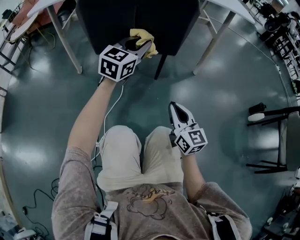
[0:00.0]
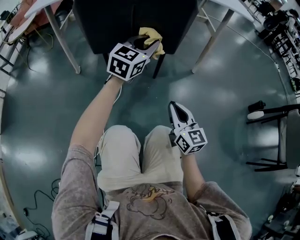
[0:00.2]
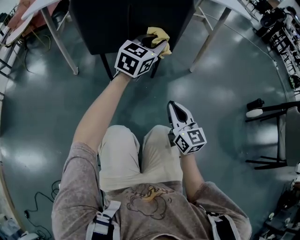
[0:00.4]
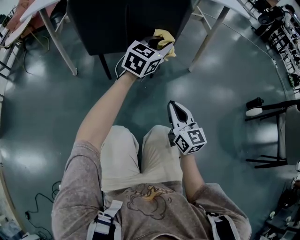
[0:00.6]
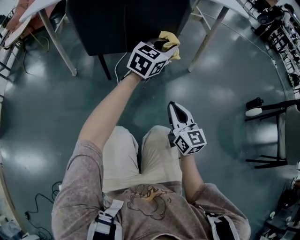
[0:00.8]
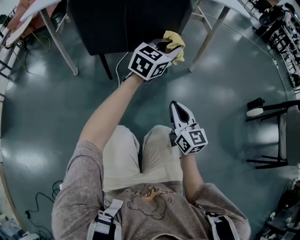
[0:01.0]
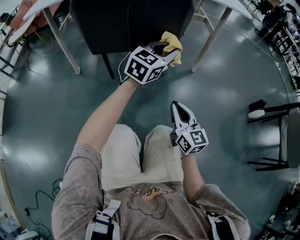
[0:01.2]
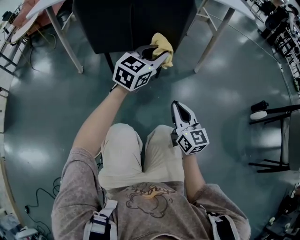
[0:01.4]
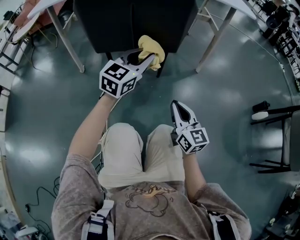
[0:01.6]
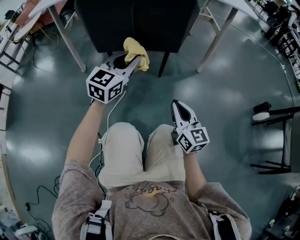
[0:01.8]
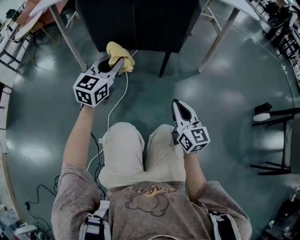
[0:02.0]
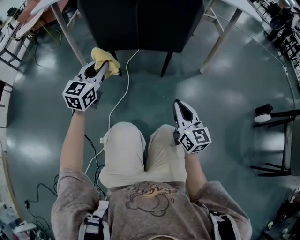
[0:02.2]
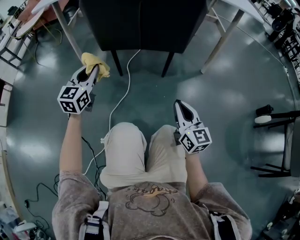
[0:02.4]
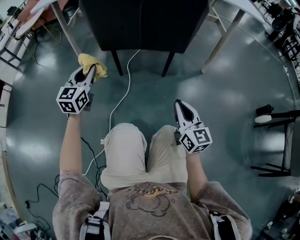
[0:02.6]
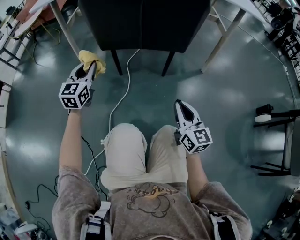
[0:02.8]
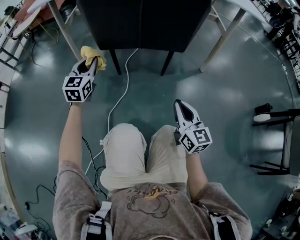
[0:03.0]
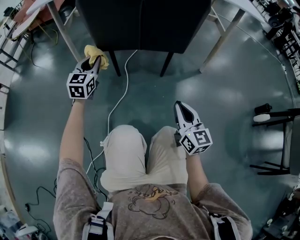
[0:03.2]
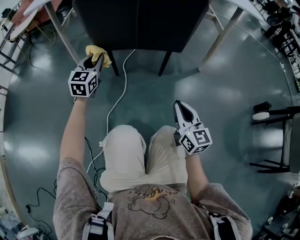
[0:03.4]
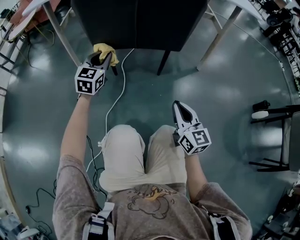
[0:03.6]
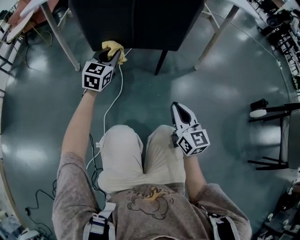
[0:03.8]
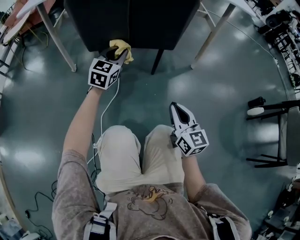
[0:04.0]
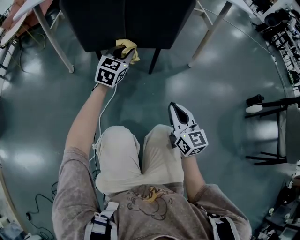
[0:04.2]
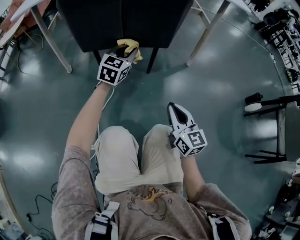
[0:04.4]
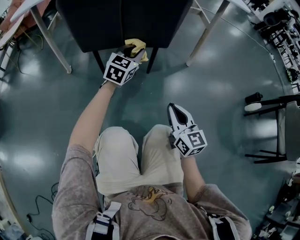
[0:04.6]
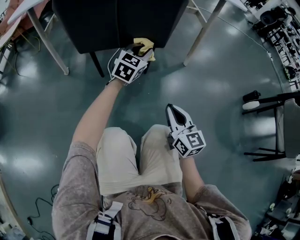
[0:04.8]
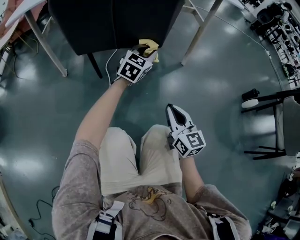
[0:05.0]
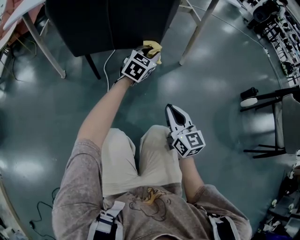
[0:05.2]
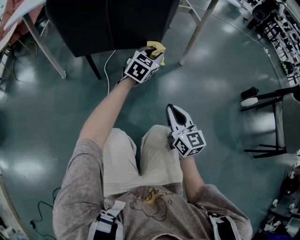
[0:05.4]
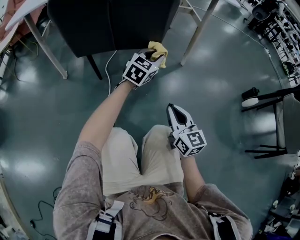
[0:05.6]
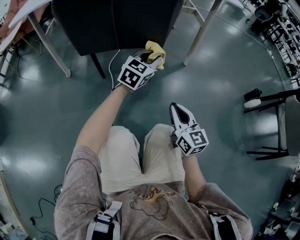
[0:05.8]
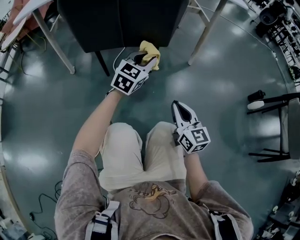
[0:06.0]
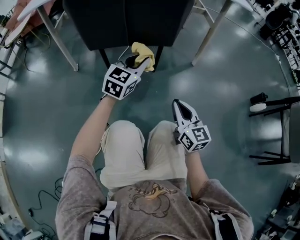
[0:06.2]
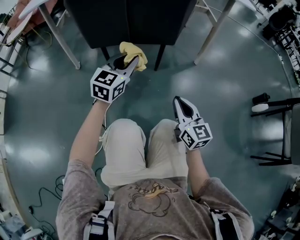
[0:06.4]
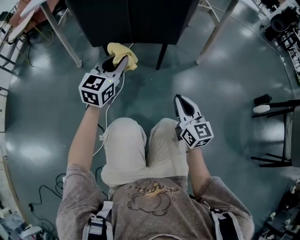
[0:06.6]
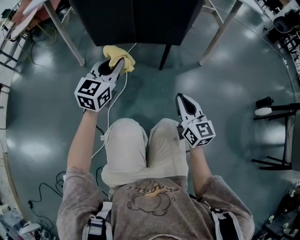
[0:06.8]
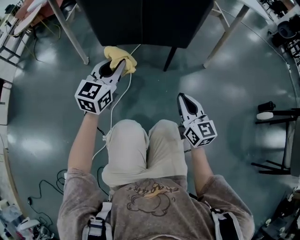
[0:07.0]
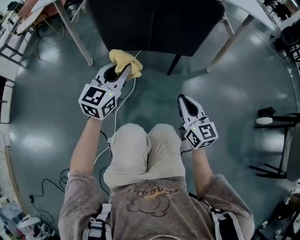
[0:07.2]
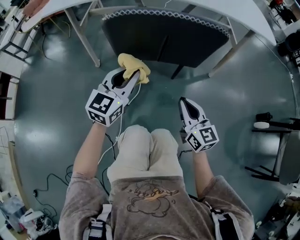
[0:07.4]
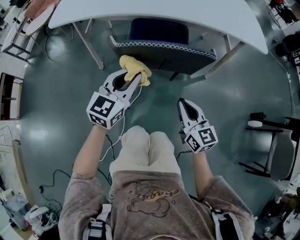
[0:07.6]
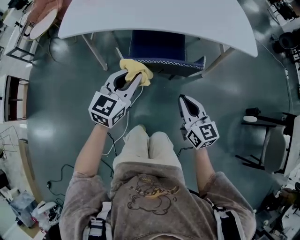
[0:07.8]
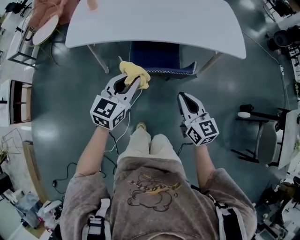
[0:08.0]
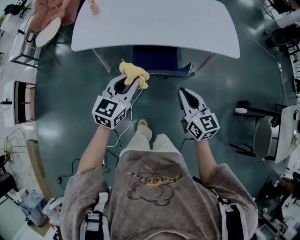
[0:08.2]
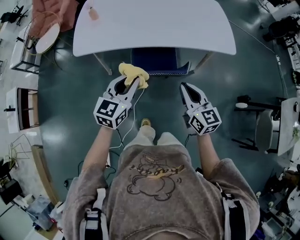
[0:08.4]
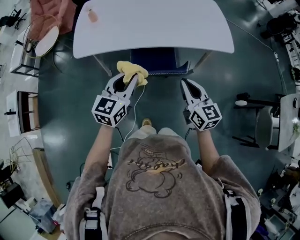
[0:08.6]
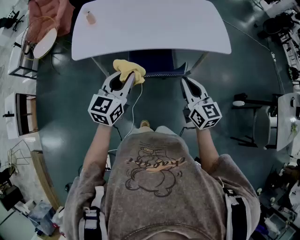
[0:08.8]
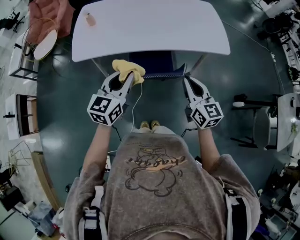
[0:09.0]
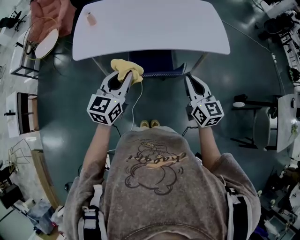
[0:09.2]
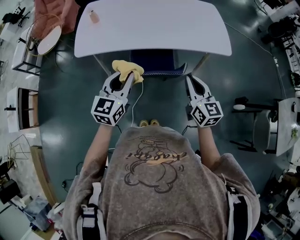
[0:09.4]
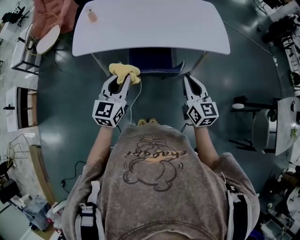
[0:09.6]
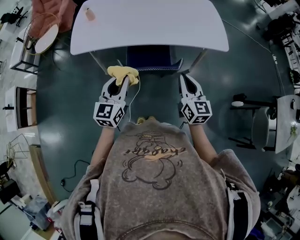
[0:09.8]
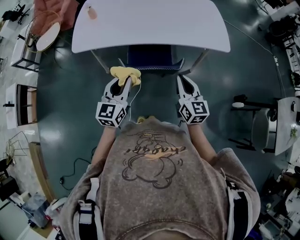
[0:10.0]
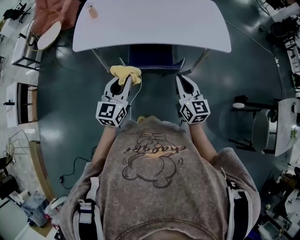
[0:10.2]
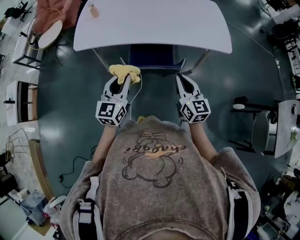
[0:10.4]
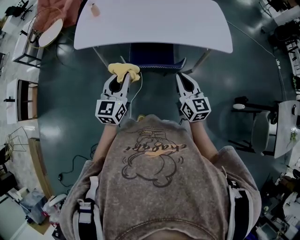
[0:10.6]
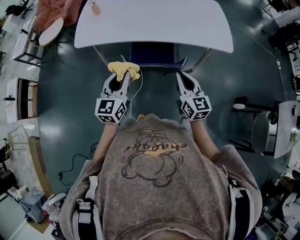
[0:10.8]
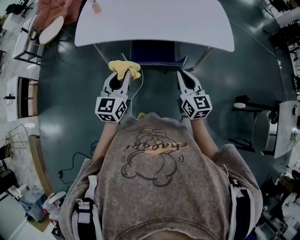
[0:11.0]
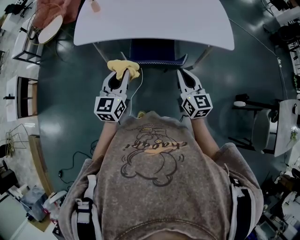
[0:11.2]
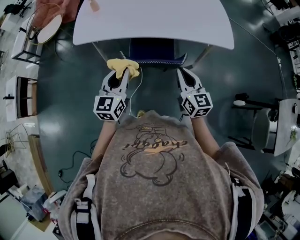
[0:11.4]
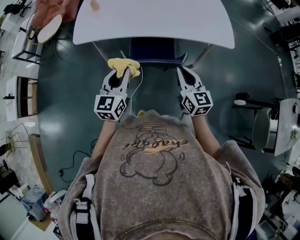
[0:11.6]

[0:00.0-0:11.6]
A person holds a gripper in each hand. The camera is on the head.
0:00.0 to 0:01.4: The left gripper moves to the right, some 10 cm.
0:01.4 to 0:02.8: The left gripper travels to the left by roughly 30 cm, and rotates approximately 30 degrees.
0:02.8 to 0:04.4: The left gripper shifts roughly 25 cm to the right, and rotates roughly 20 degrees.
0:04.4 to 0:05.8: The left gripper is displaced to the right by some 10 cm.
0:05.8 to 0:07.2: The left gripper travels to the left by approximately 25 cm, and changes its angle by some 20 degrees; the right gripper is displaced to the left and forward by approximately 10 cm.
0:07.2 to 0:08.8: The grippers both shift upward by some 50 cm.
0:08.8 to 0:10.2: The left gripper ends up some 5 cm from where it was.
0:10.2 to 0:11.6: There are only small adjustments of the grippers.

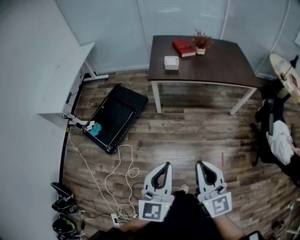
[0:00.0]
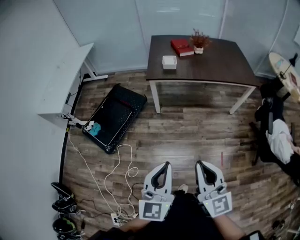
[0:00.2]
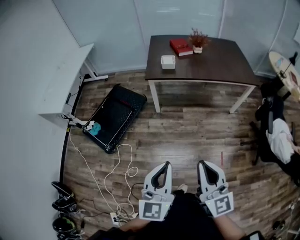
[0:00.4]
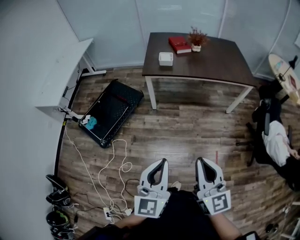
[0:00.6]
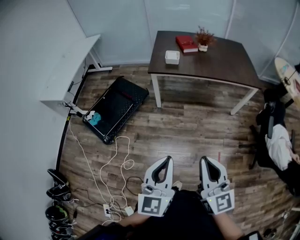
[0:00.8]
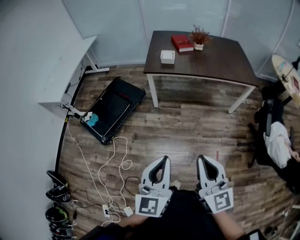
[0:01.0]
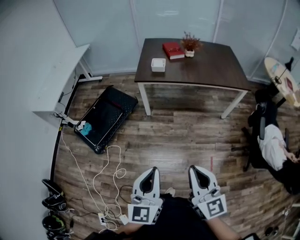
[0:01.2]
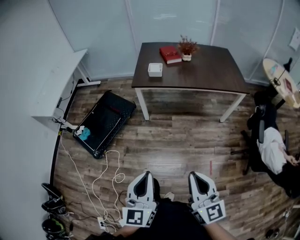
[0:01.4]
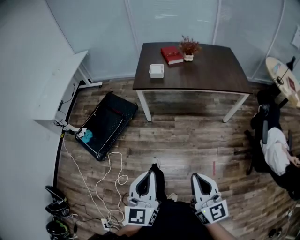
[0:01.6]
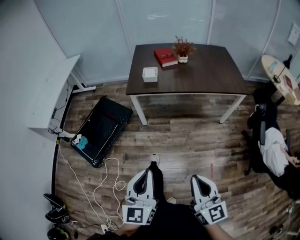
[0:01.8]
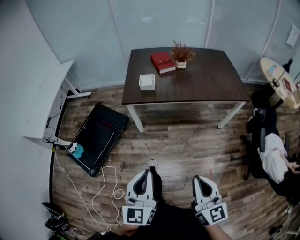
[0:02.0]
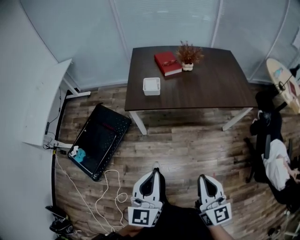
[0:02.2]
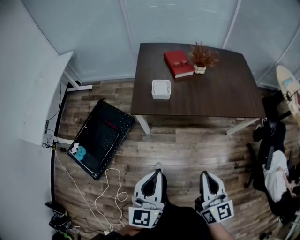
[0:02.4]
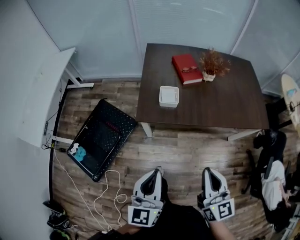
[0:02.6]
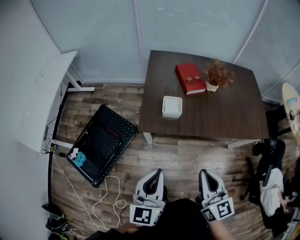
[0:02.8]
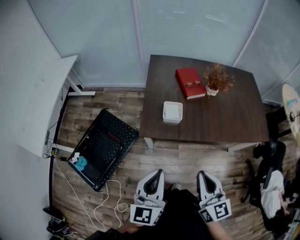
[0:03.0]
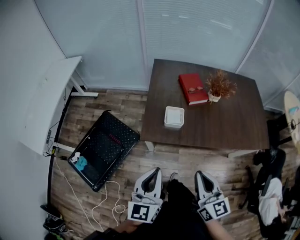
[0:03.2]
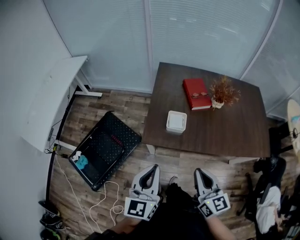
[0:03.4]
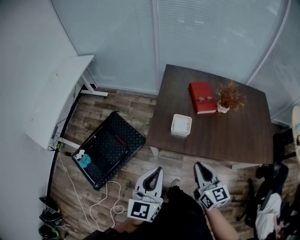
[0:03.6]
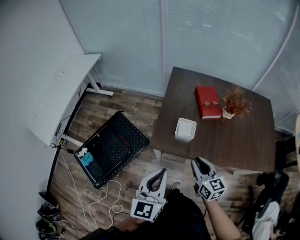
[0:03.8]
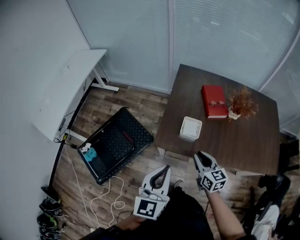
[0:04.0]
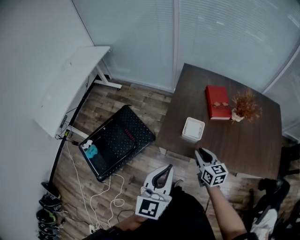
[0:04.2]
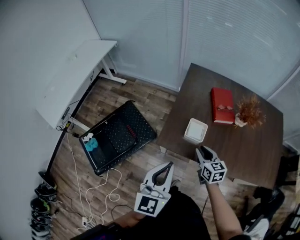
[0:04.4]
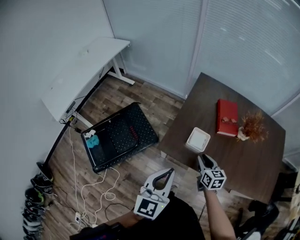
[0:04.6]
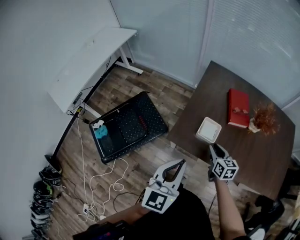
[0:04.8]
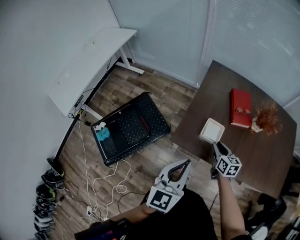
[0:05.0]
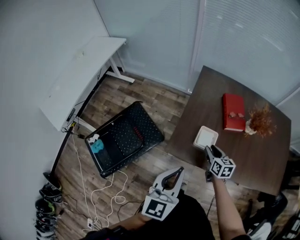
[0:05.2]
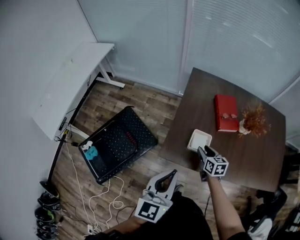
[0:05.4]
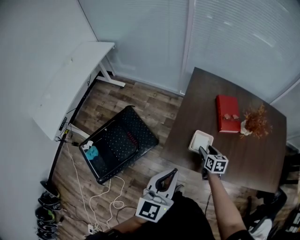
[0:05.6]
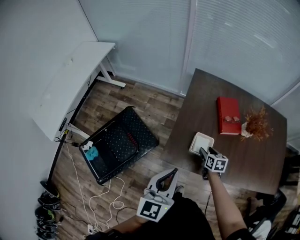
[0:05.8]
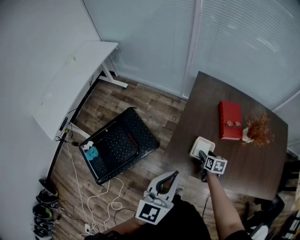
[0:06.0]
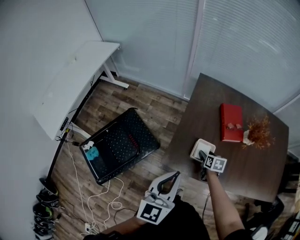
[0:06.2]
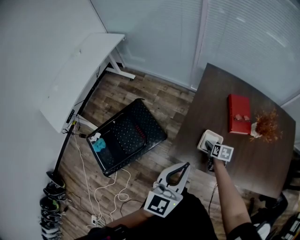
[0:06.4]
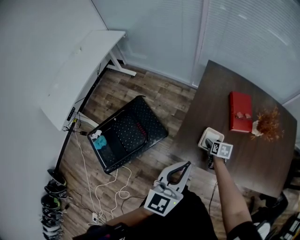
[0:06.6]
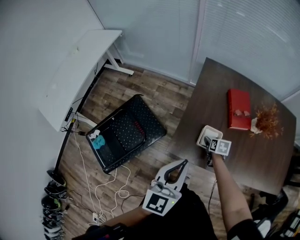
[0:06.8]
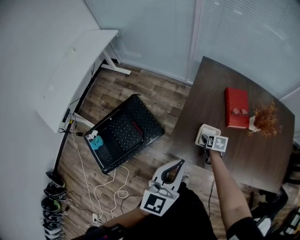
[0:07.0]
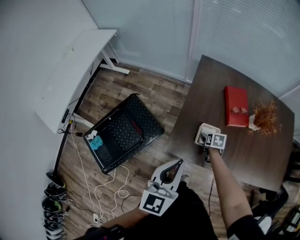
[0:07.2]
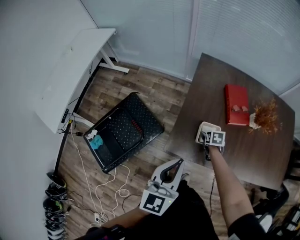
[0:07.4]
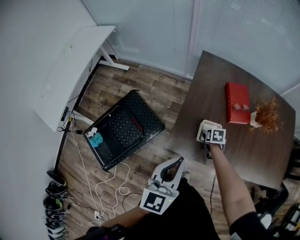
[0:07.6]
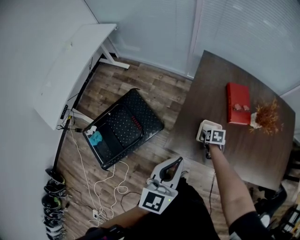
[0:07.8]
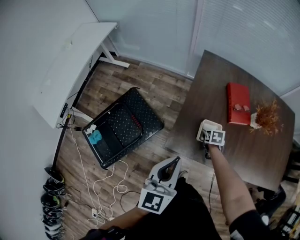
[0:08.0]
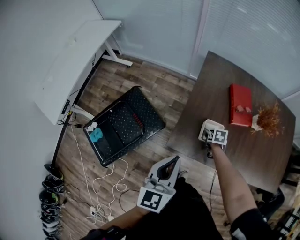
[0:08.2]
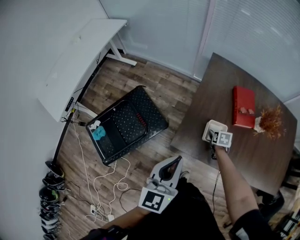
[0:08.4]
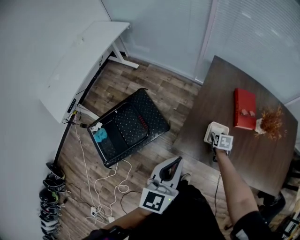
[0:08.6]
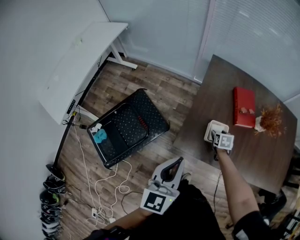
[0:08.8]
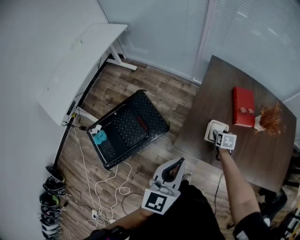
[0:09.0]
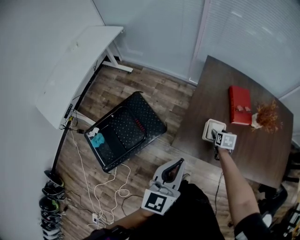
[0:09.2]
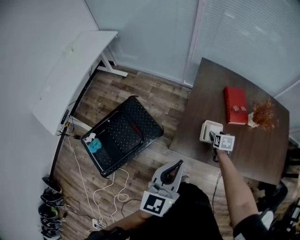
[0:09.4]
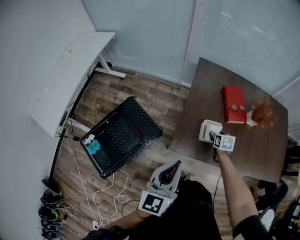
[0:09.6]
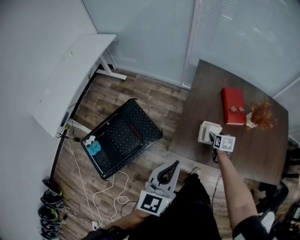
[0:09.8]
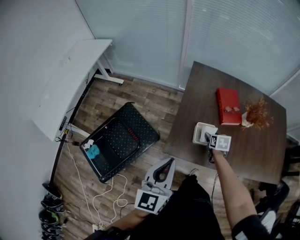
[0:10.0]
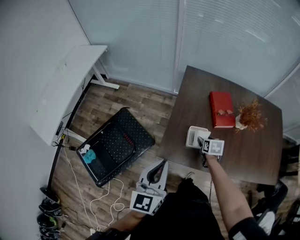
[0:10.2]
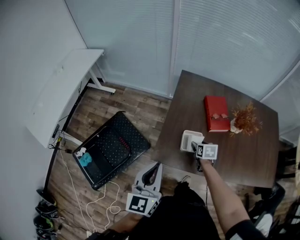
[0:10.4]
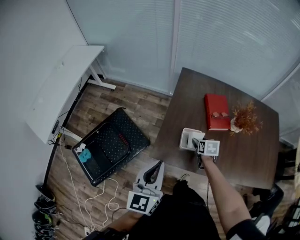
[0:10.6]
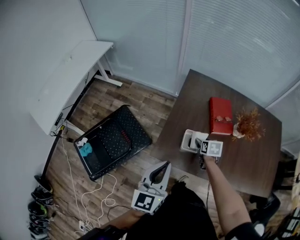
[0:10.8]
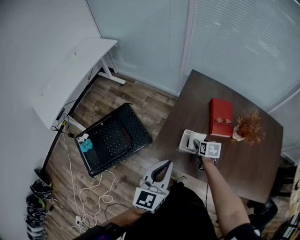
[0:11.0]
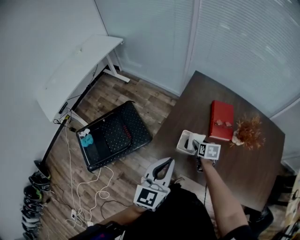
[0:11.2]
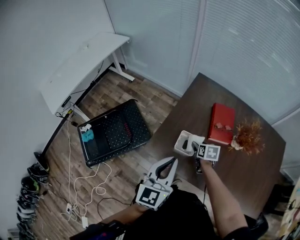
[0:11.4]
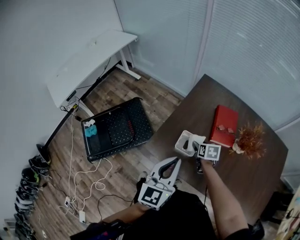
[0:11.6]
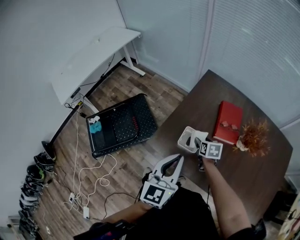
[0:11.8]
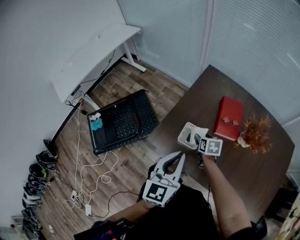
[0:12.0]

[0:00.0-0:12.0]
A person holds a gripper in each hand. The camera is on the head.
0:00.0 to 0:01.6: The left gripper heads to the right, covering some 5 cm. Meanwhile the right gripper shifts some 10 cm to the right.
0:01.6 to 0:03.0: The two grippers travel together, forward, approximately 50 cm.
0:03.0 to 0:04.4: The right gripper heads forward and downward, covering roughly 30 cm, and changes its angle by roughly 30 degrees. Meanwhile the left gripper moves forward, approximately 10 cm.
0:04.4 to 0:06.0: The right gripper shifts approximately 15 cm downward and forward, swivels approximately 30 degrees, and opens its fingers; the left gripper heads forward, covering some 10 cm.
0:06.0 to 0:07.6: The right gripper ends up about 5 cm from where it was.
0:07.6 to 0:09.0: The left gripper moves some 5 cm.
0:09.0 to 0:10.4: The right gripper changes place by roughly 5 cm.
0:10.4 to 0:12.0: The left gripper heads to the right, covering approximately 15 cm.
